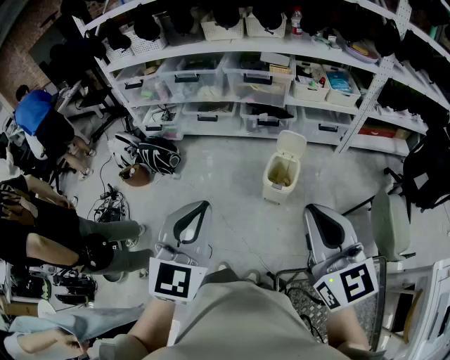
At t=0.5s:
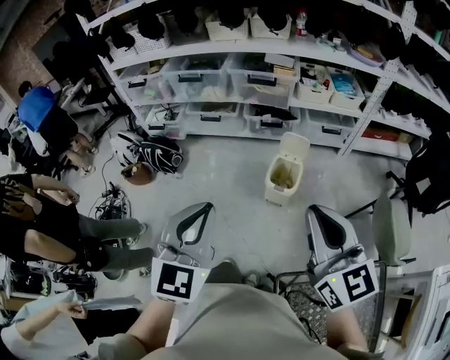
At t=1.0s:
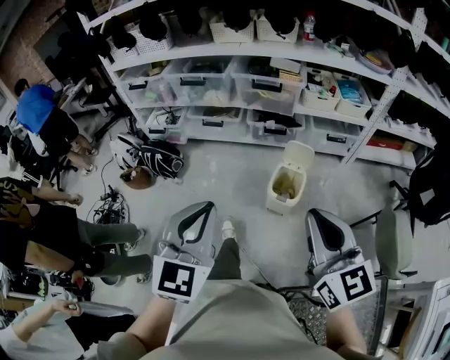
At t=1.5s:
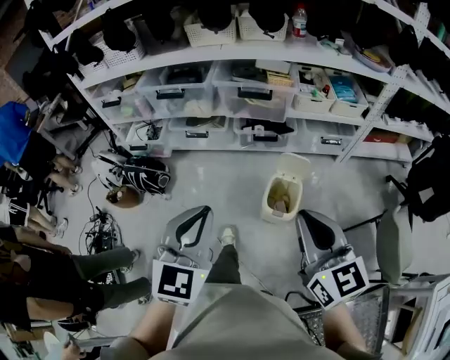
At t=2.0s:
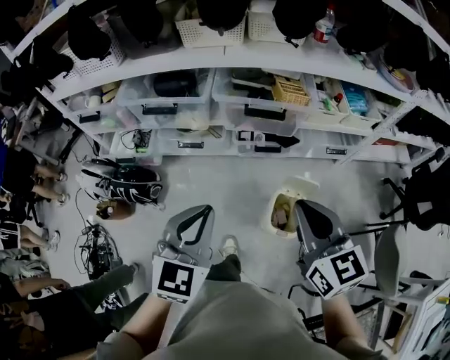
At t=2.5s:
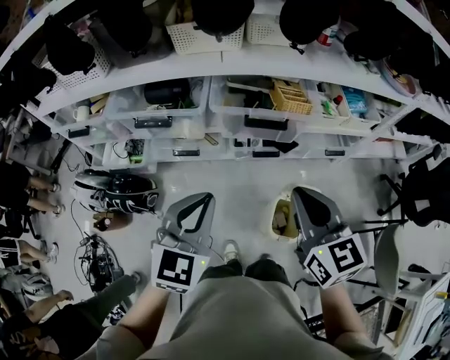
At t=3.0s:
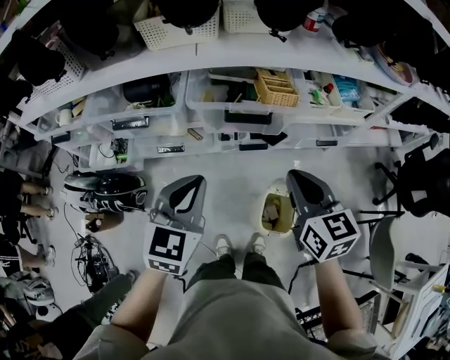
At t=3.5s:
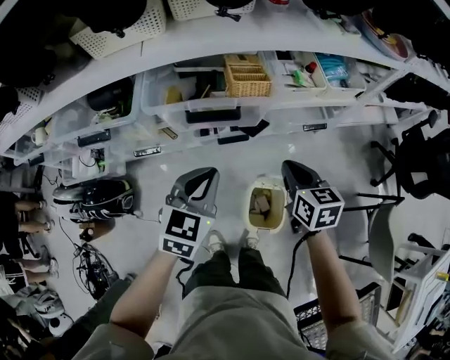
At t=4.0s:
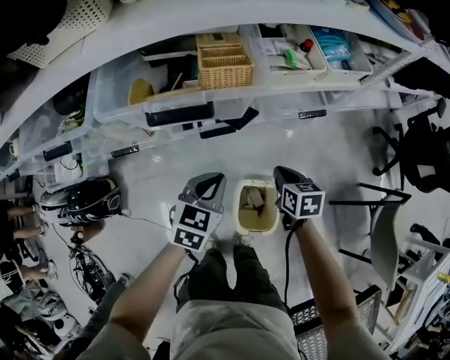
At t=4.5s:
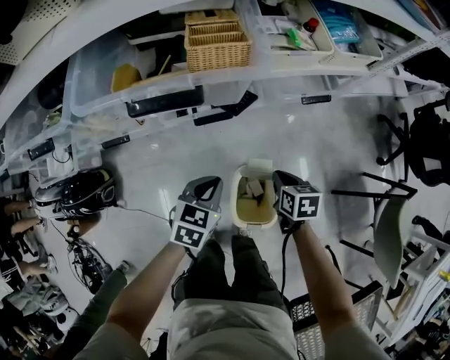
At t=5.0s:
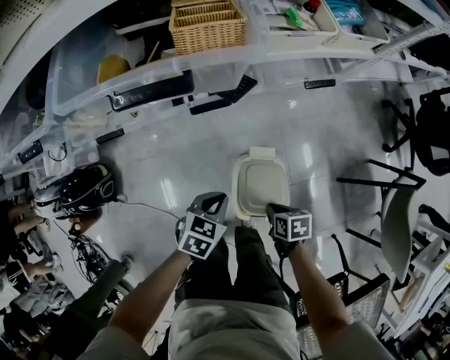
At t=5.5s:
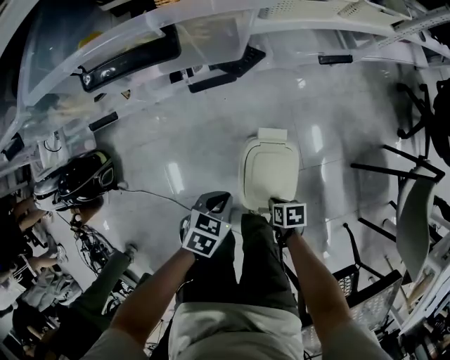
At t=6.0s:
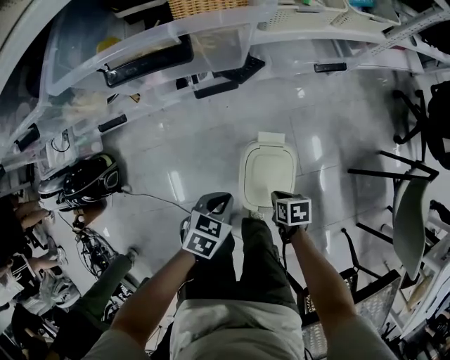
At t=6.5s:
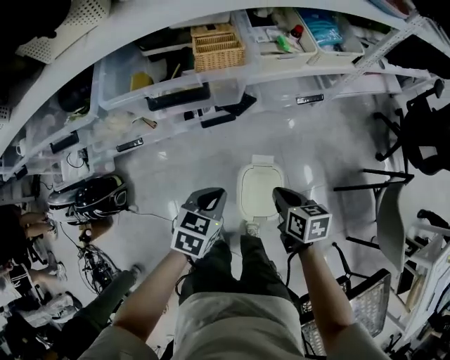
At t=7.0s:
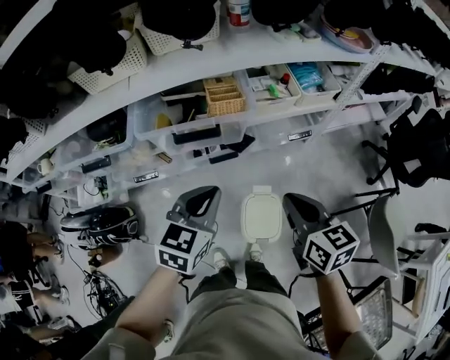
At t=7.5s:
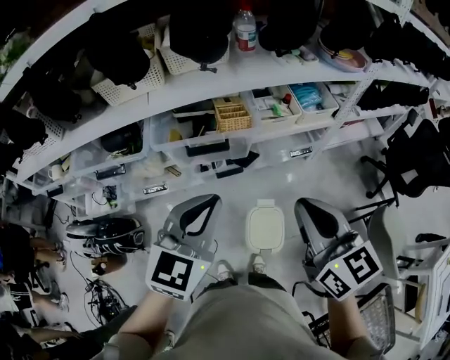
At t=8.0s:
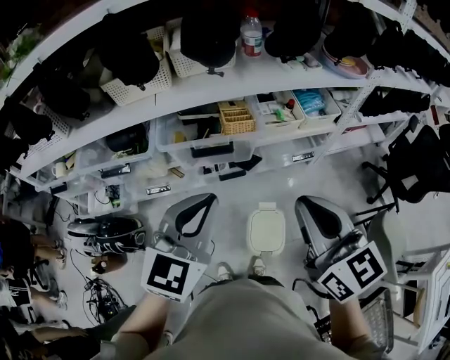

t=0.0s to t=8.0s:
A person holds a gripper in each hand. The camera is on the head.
t=0.0s to t=2.0s: Both grippers are carried forward, about 50 cm.
t=2.0s to t=4.0s: The grippers both shift downward, forward and to the right by roughly 50 cm. The right gripper tips its fingers downward by about 30 degrees, while the left gripper turns by approximately 30 degrees.
t=4.0s to t=6.0s: The two grippers go some 20 cm downward. The left gripper turns by roughly 20 degrees. The right gripper swivels some 30 degrees.
t=6.0s to t=8.0s: The grippers both shift upward by some 60 cm. The left gripper points its fingers some 40 degrees further upward, while the right gripper tilts its fingers approximately 60 degrees upward.

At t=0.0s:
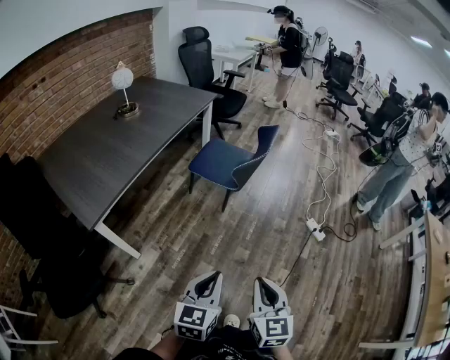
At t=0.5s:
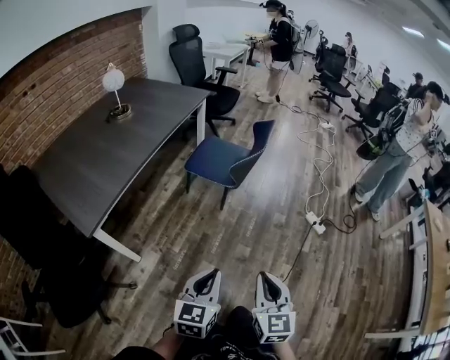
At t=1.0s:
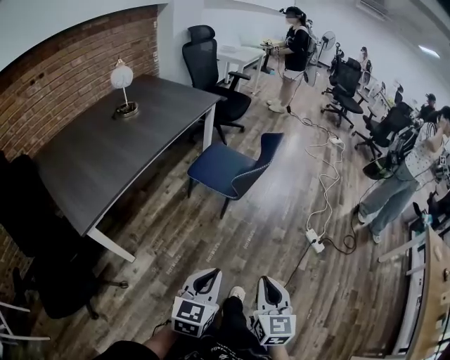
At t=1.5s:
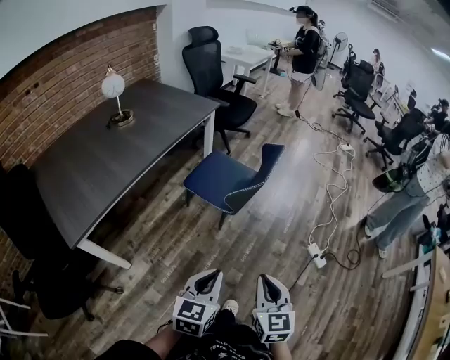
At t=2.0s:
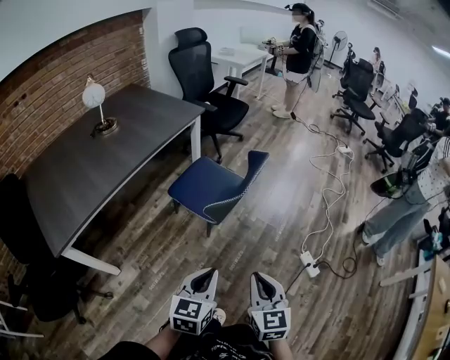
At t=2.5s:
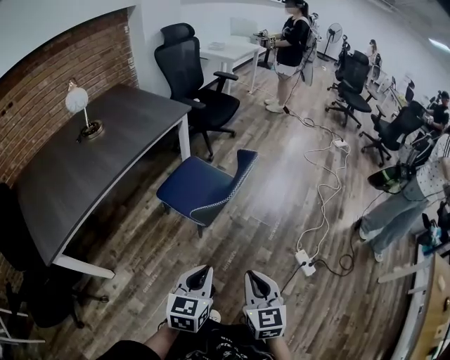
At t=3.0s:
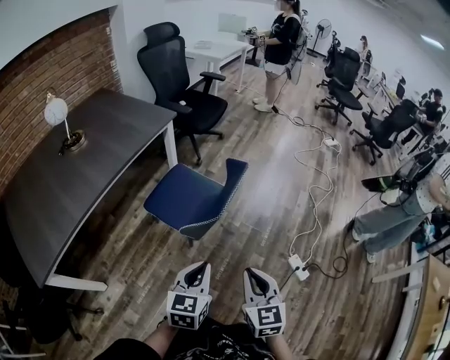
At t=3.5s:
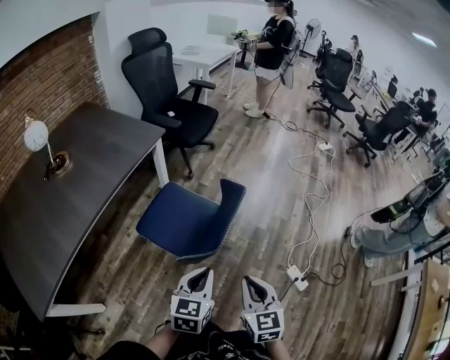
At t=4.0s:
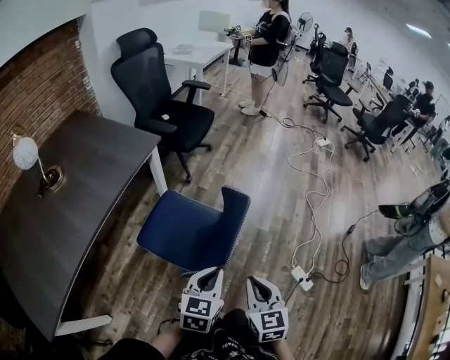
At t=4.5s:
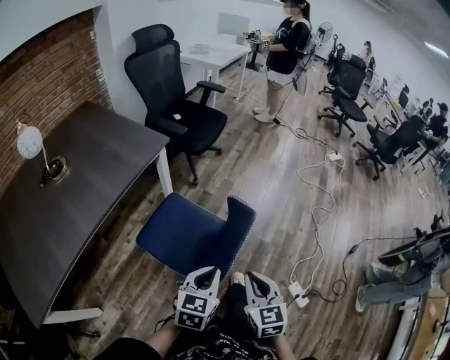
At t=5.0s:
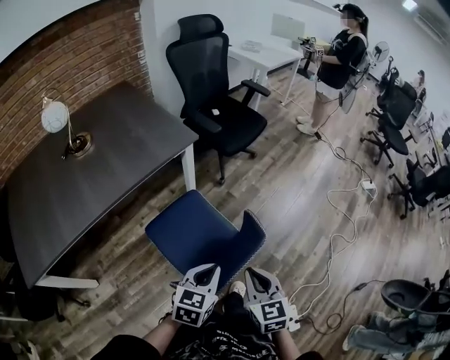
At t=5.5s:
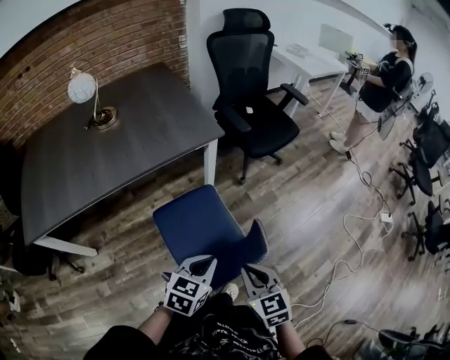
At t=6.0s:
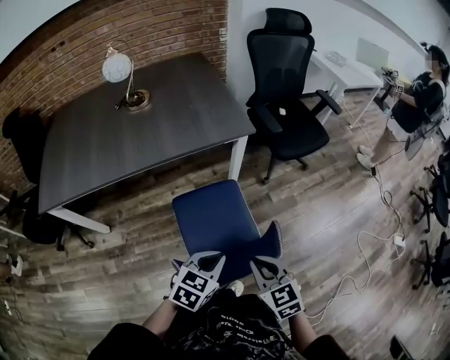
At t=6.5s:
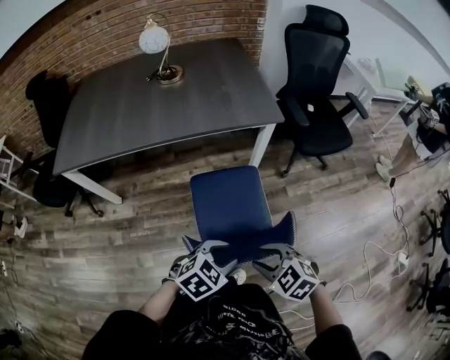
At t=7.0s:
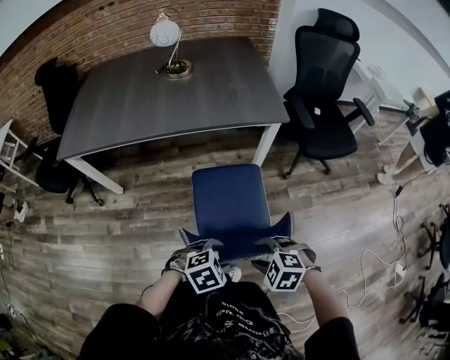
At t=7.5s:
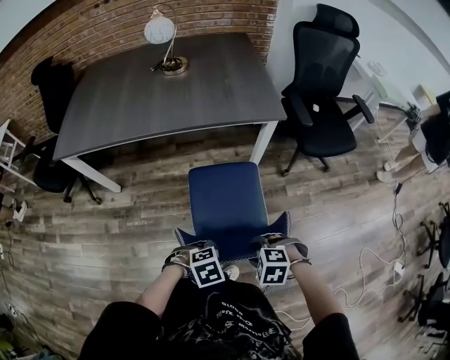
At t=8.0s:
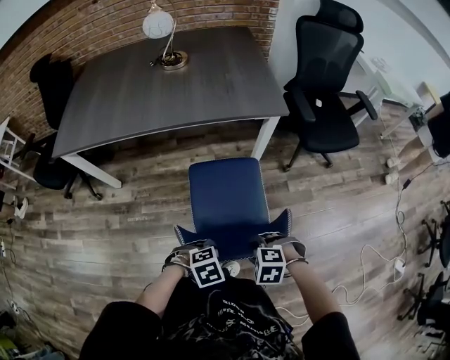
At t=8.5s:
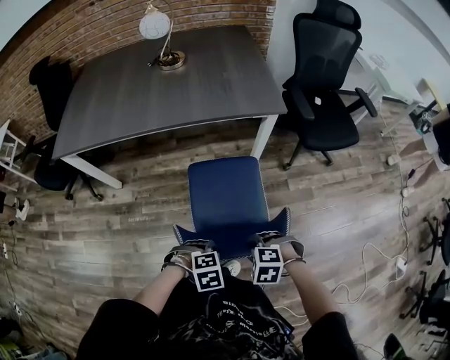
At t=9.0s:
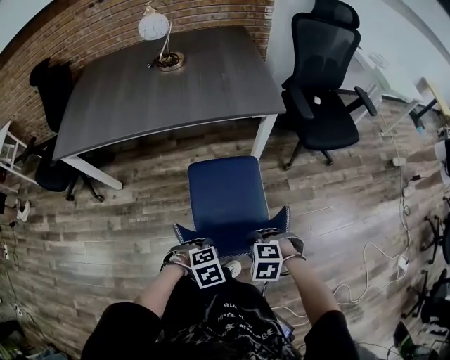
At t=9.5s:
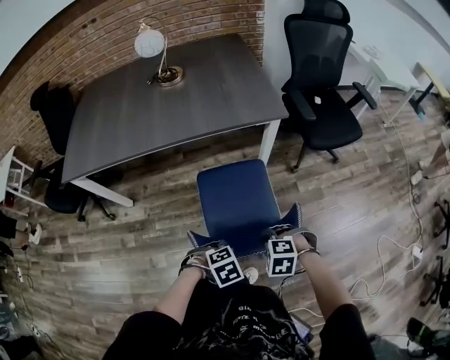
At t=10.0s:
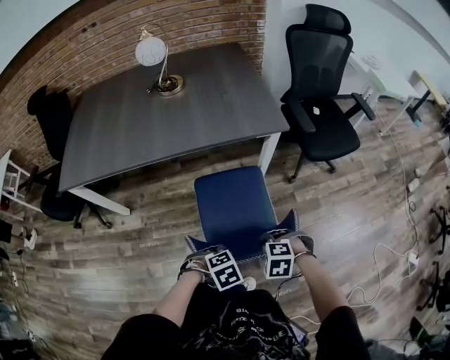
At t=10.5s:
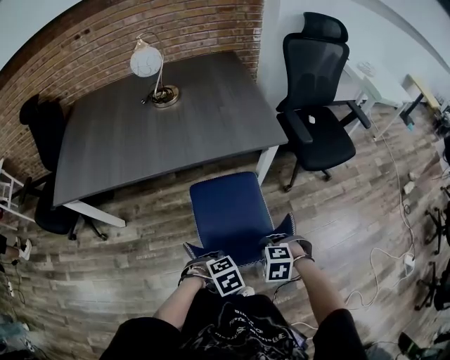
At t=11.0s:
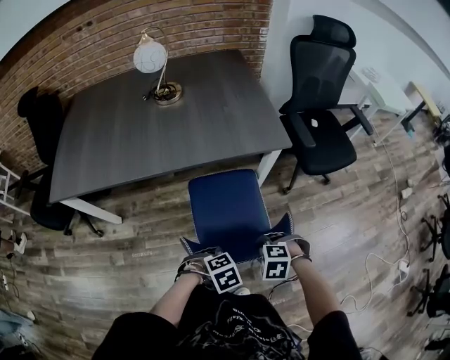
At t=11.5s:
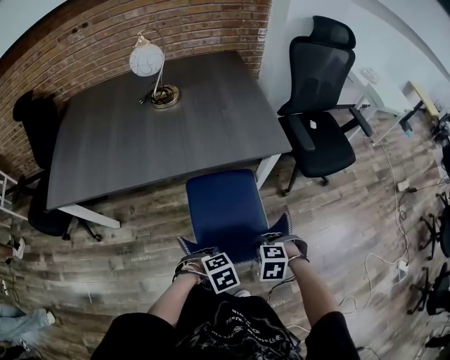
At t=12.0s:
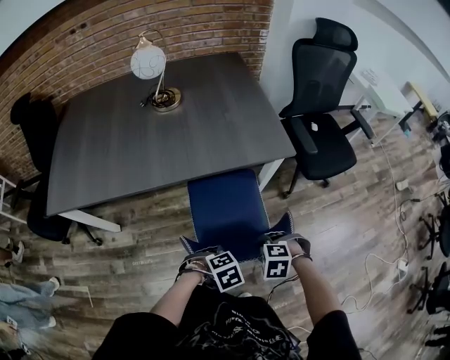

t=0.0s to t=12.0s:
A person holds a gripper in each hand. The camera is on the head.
t=0.0s to t=2.0s: The two grippers go some 30 cm forward and to the right.
t=2.0s to t=4.0s: Both grippers move forward, approximately 30 cm.
t=4.0s to t=6.0s: The left gripper changes place by roughly 15 cm, and swivels roughly 30 degrees; the right gripper ends up some 25 cm from where it was, and rotates some 60 degrees.
t=6.0s to t=8.0s: The grippers both shift downward by about 10 cm. The right gripper tips its fingers downward by roughly 40 degrees, and opens up, while the left gripper tilts its fingers some 30 degrees downward, and opens up.
t=8.0s to t=10.0s: The right gripper shifts by roughly 10 cm; the left gripper changes place by approximately 5 cm, and closes up.
t=10.0s to t=12.0s: The right gripper shifts by about 10 cm; the left gripper moves roughly 10 cm.

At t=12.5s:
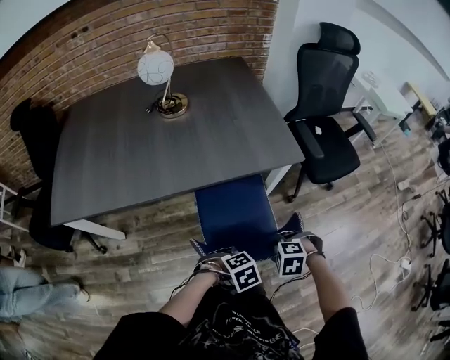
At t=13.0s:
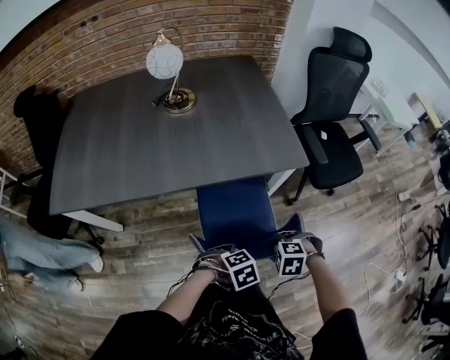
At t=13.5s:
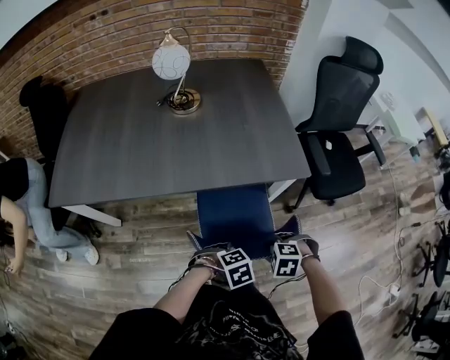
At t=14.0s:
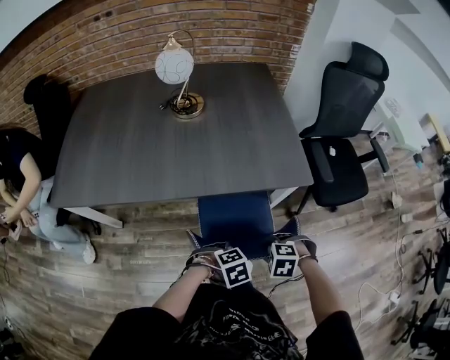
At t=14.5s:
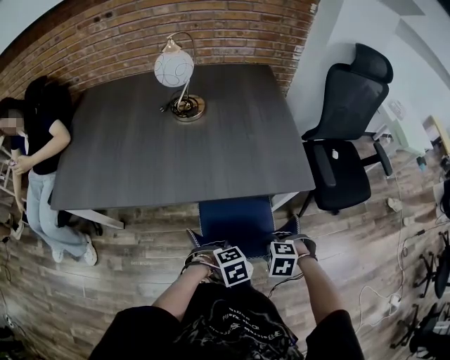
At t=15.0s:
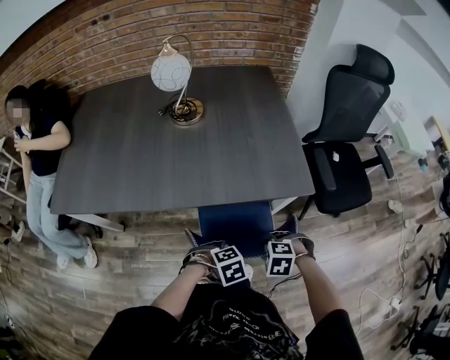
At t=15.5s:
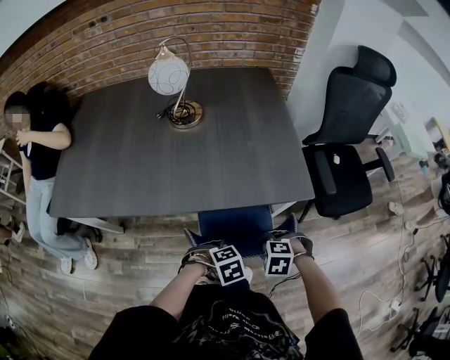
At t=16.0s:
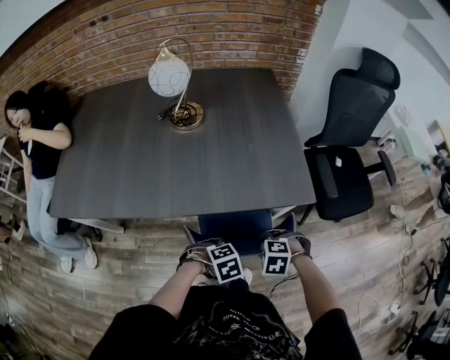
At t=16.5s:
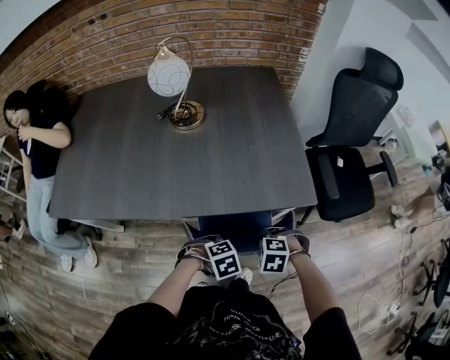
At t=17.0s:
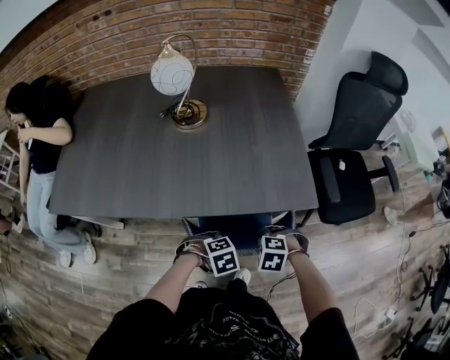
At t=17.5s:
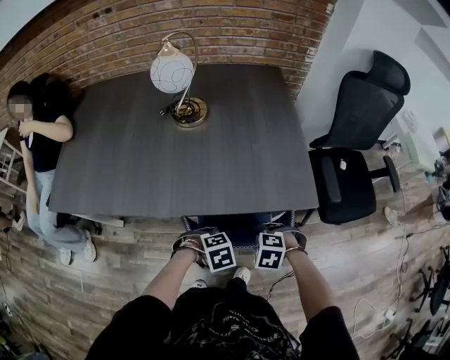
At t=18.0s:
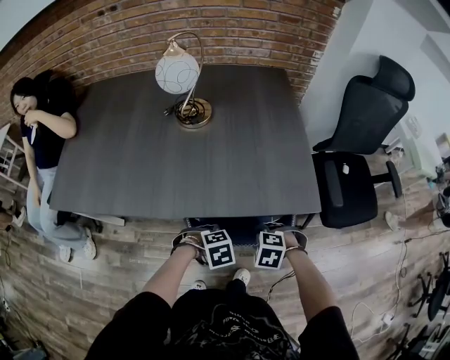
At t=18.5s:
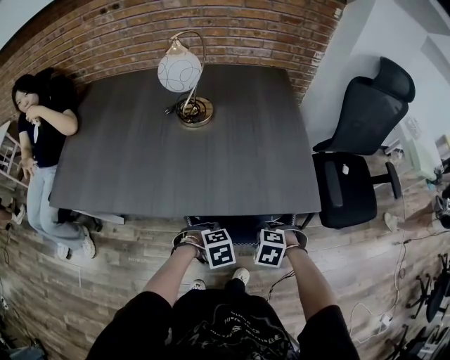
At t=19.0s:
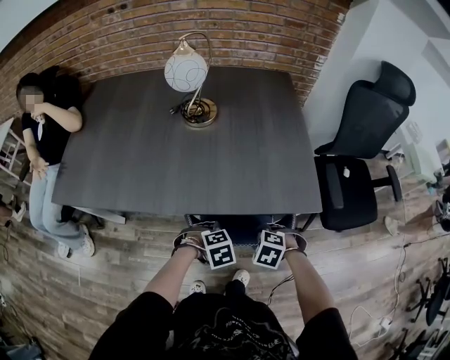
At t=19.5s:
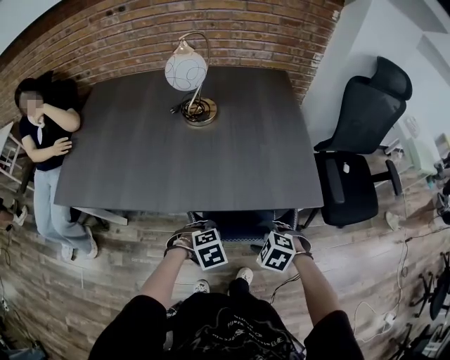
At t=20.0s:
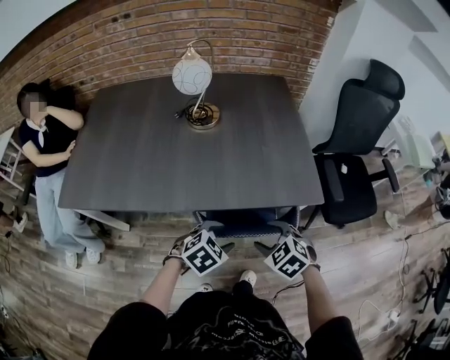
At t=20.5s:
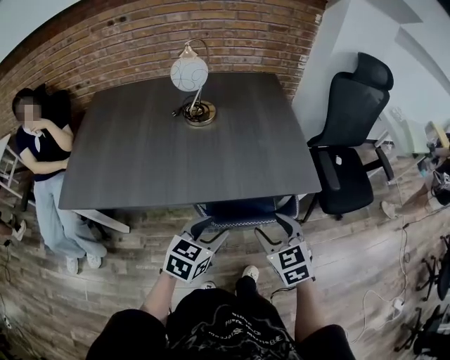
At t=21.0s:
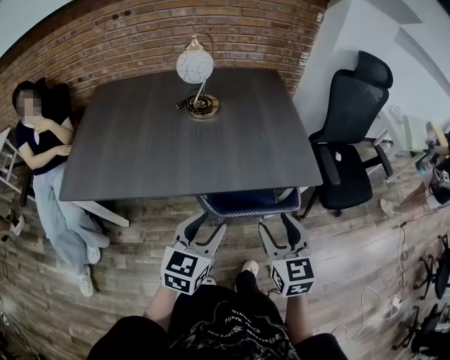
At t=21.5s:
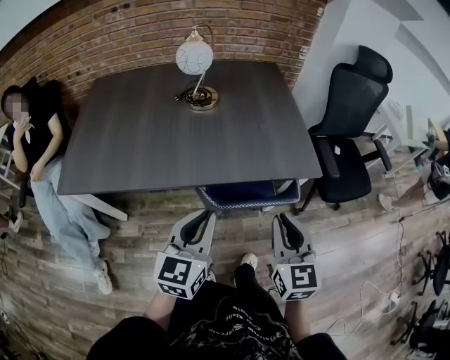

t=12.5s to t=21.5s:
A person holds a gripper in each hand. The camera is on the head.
t=12.5s to t=14.5s: The right gripper moves about 10 cm, while the left gripper shifts by about 10 cm.
t=14.5s to t=17.0s: The right gripper changes place by some 10 cm, while the left gripper ends up roughly 10 cm from where it was.
t=17.0s to t=19.5s: The left gripper opens its fingers. The right gripper opens up.
t=19.5s to t=21.5s: The grippers both shift upward by about 20 cm. The right gripper points its fingers some 60 degrees further upward, and closes. The left gripper points its fingers about 60 degrees further upward, and closes up.
